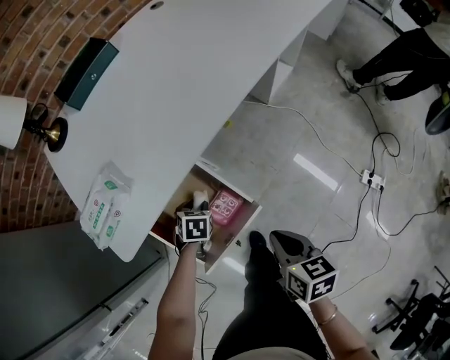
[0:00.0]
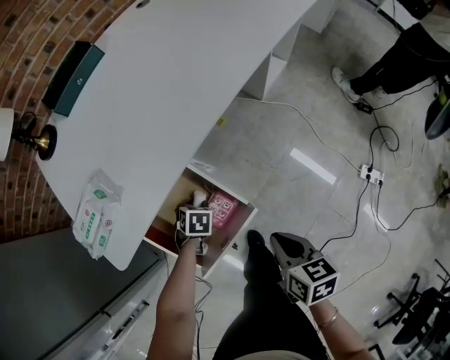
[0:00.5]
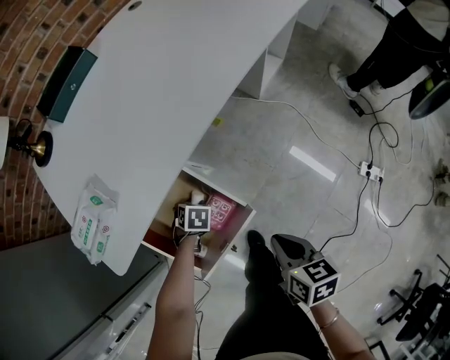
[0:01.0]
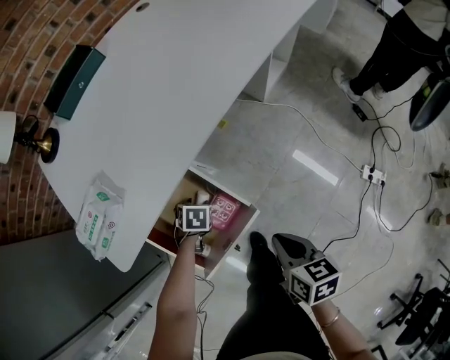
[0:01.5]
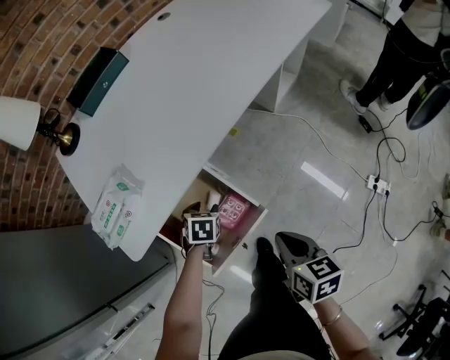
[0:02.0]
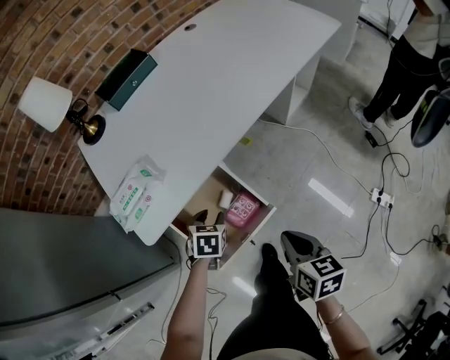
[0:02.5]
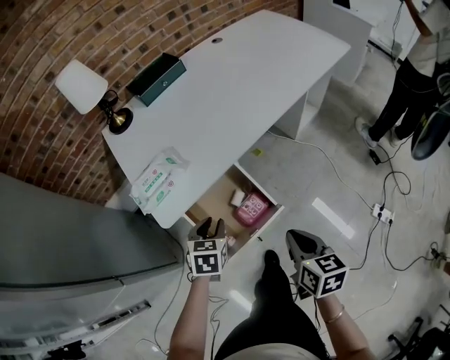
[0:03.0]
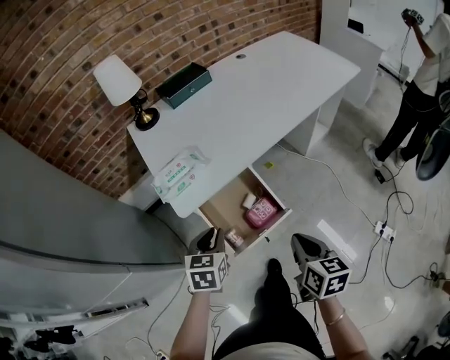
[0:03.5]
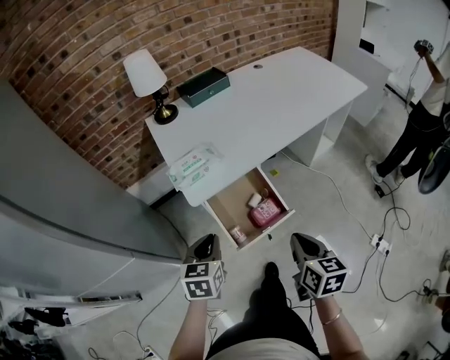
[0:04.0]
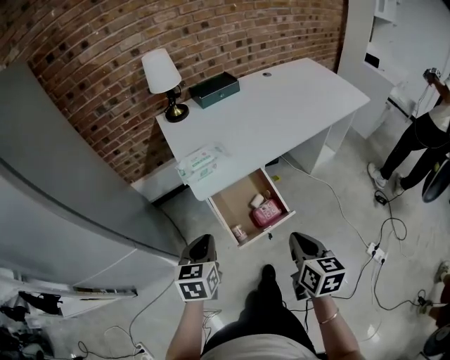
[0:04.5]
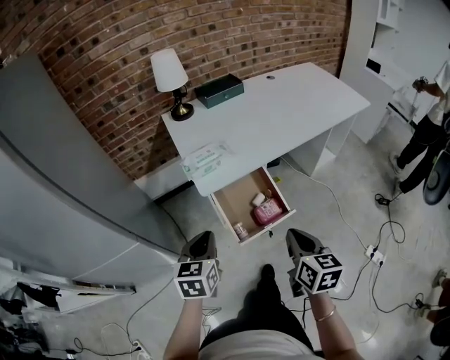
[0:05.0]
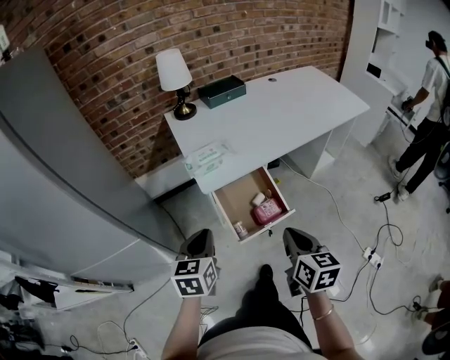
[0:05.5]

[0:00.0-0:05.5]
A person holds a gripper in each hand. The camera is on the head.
0:02.0 to 0:03.5: The right gripper shifts approximately 20 cm upward, backward and to the left. The left gripper is displaced upward, backward and to the left by about 35 cm, rotates some 30 degrees, and closes its fingers.
0:03.5 to 0:05.5: The left gripper is displaced backward, to the left and upward by roughly 20 cm. The right gripper goes approximately 15 cm to the left, backward and upward.

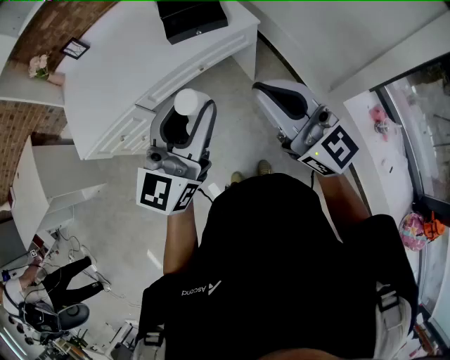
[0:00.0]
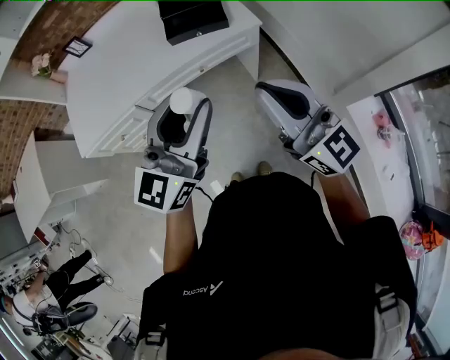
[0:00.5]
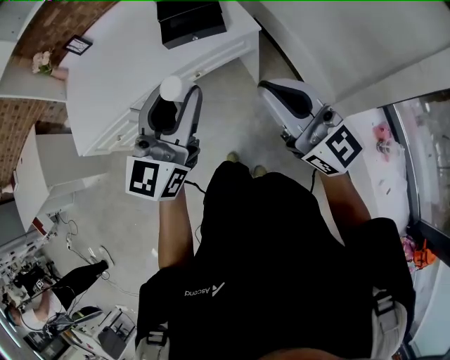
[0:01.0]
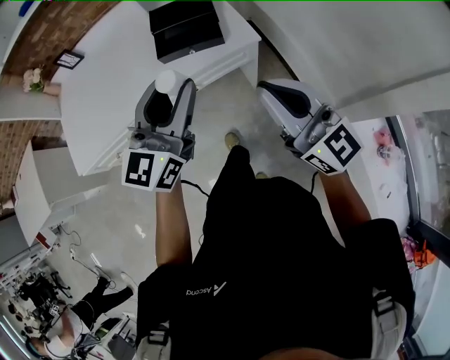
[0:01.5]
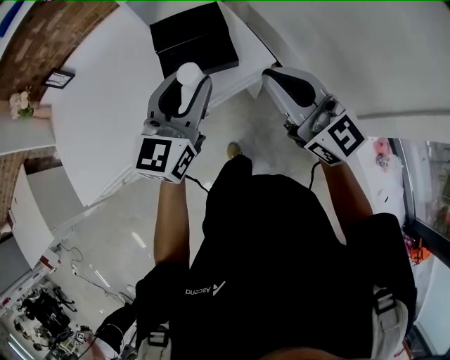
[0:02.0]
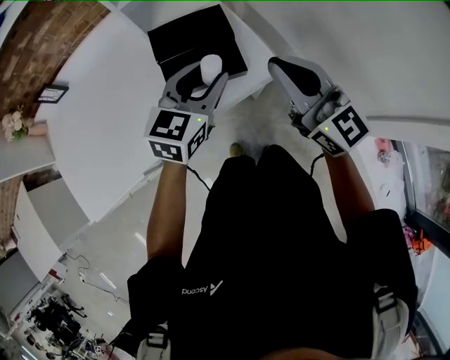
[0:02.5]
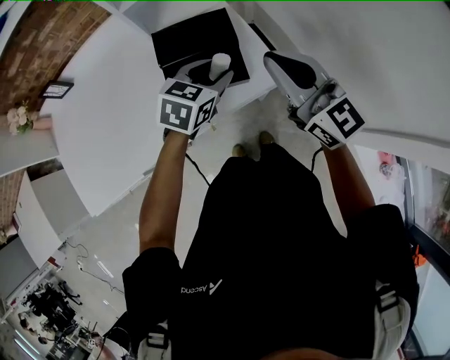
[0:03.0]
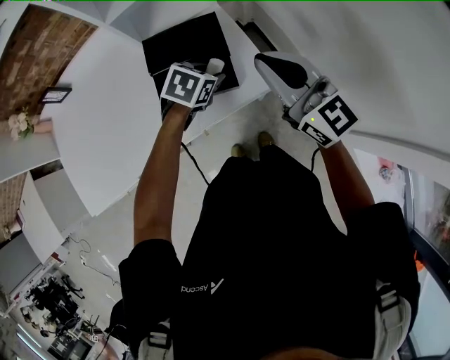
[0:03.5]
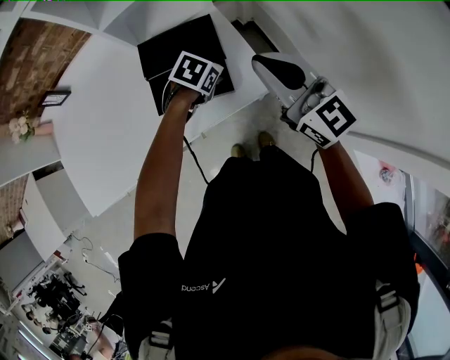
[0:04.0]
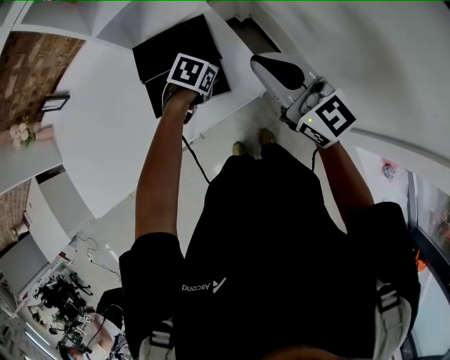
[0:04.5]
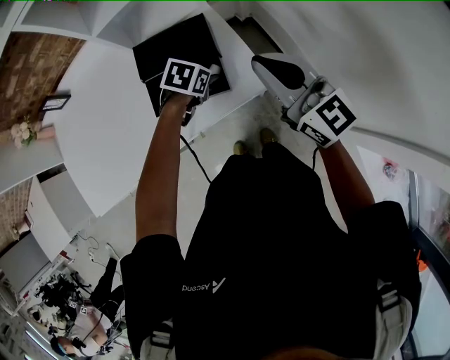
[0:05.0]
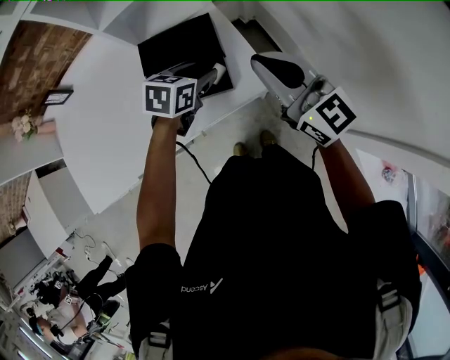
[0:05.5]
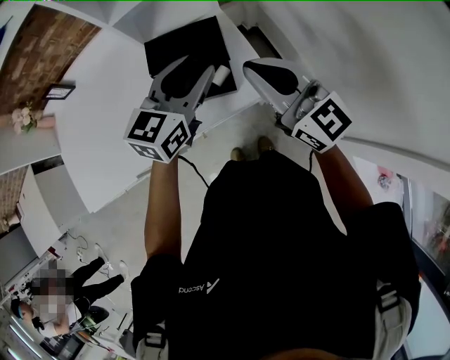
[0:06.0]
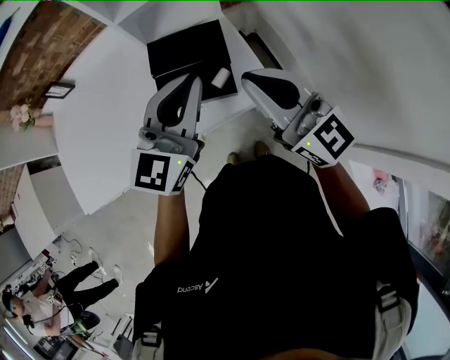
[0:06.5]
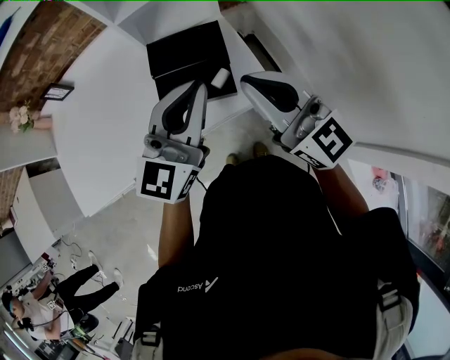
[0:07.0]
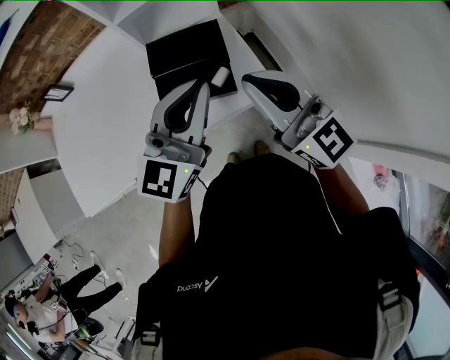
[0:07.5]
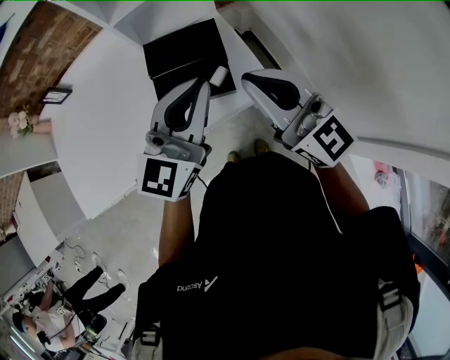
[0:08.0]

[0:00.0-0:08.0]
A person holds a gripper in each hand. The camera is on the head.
0:00.0 to 0:02.0: The grippers both shift forward by approximately 30 cm.
0:02.0 to 0:04.0: The right gripper goes some 20 cm forward. The left gripper heads downward and forward, covering some 35 cm, and tips its fingers downward by about 60 degrees.
0:04.0 to 0:06.0: The left gripper moves upward, about 25 cm, and tips its fingers upward by approximately 50 degrees.
0:06.0 to 0:08.0: The left gripper is displaced upward and backward by roughly 10 cm, and closes up, while the right gripper shifts by approximately 5 cm.

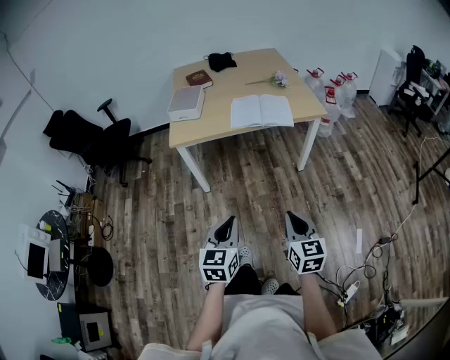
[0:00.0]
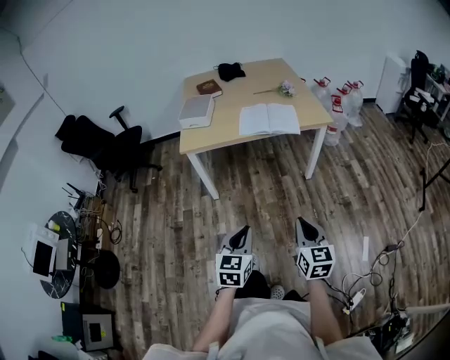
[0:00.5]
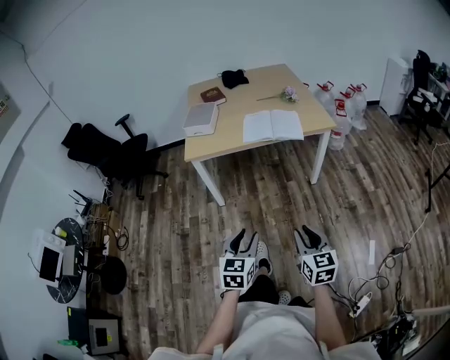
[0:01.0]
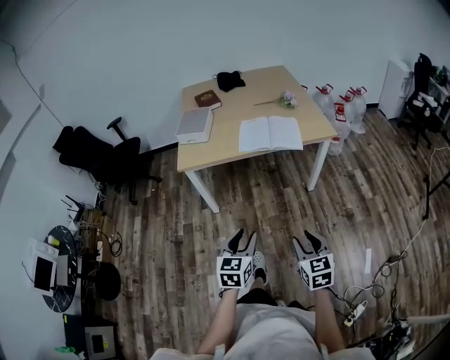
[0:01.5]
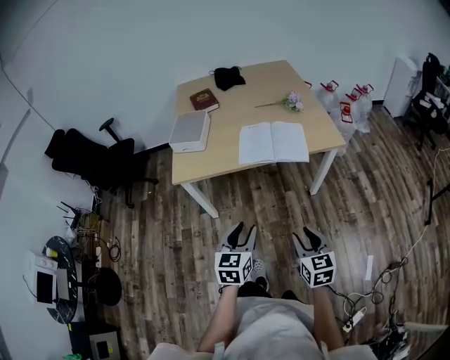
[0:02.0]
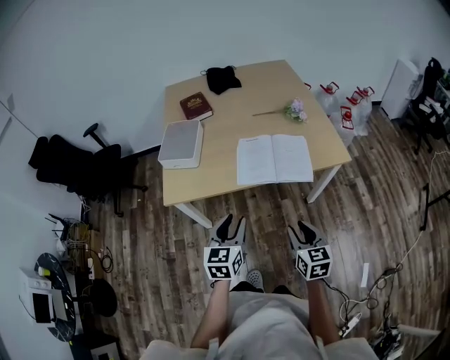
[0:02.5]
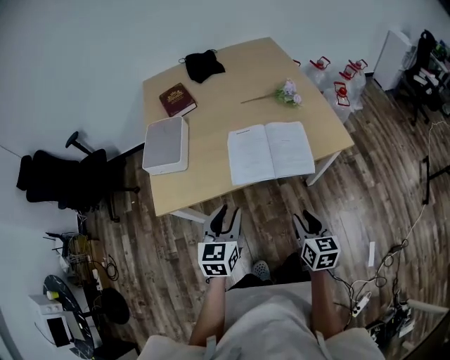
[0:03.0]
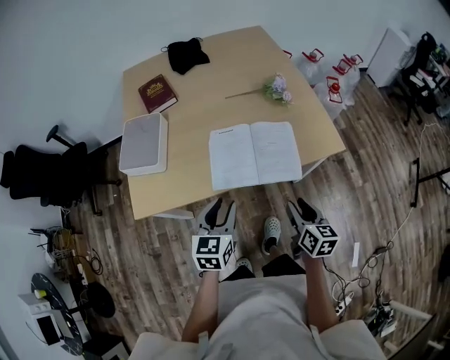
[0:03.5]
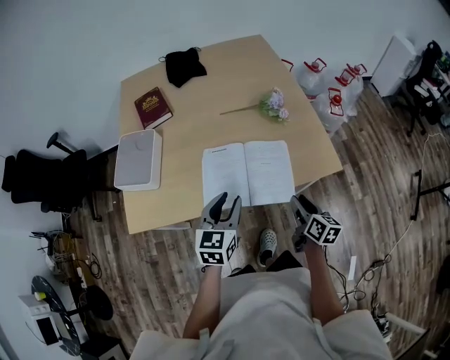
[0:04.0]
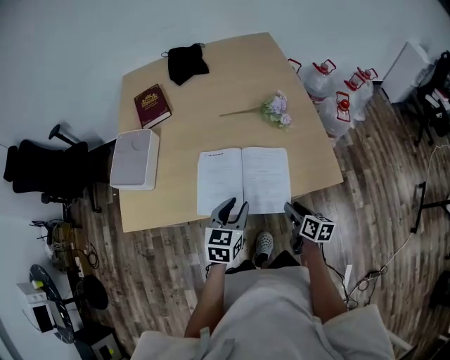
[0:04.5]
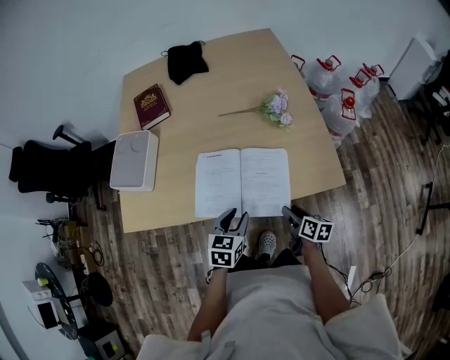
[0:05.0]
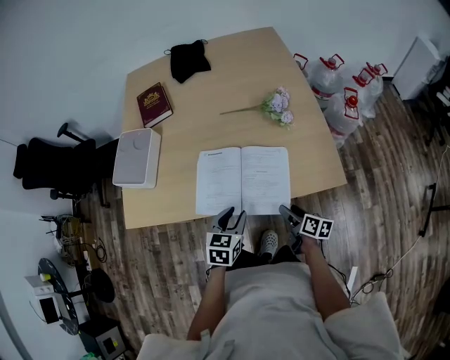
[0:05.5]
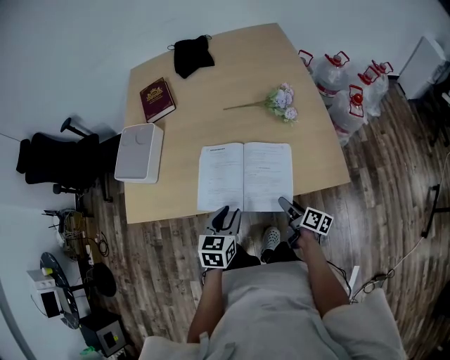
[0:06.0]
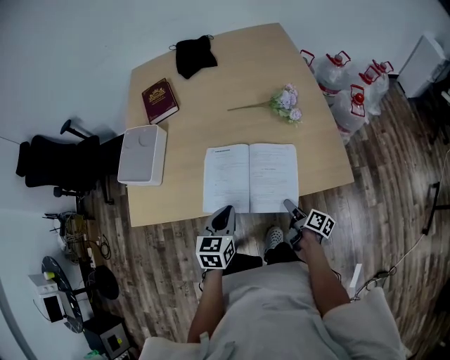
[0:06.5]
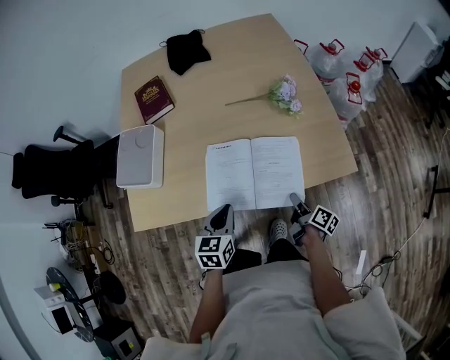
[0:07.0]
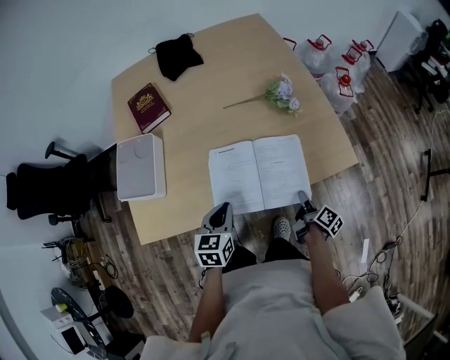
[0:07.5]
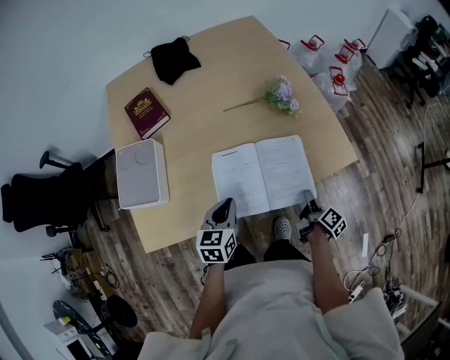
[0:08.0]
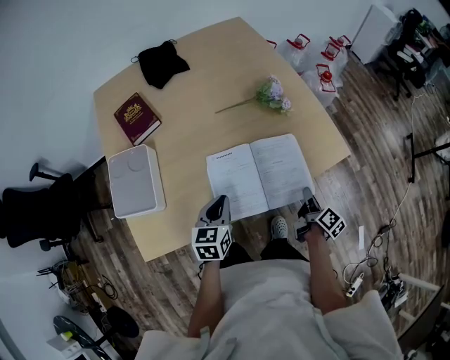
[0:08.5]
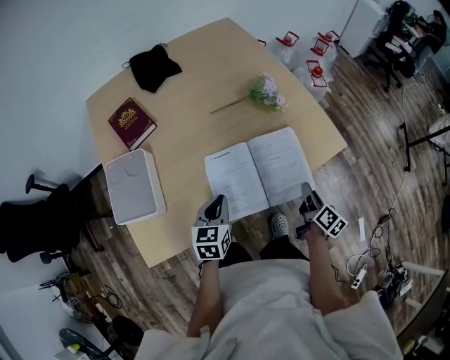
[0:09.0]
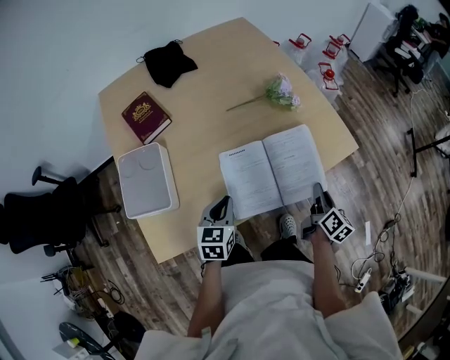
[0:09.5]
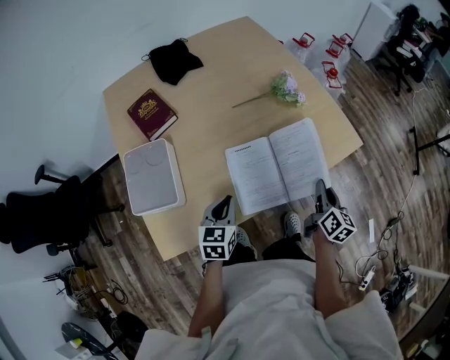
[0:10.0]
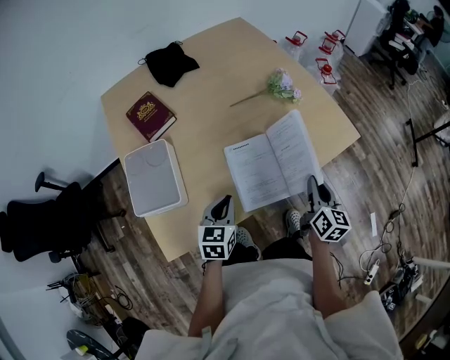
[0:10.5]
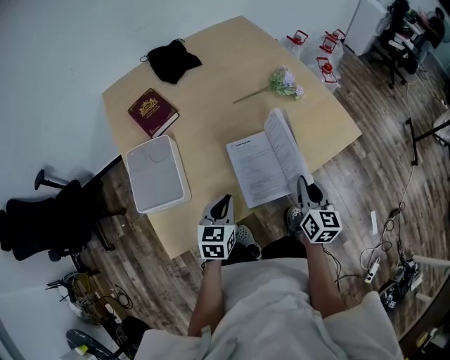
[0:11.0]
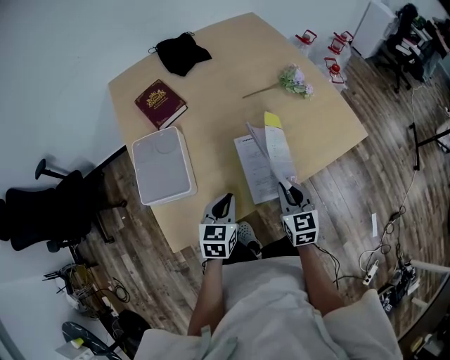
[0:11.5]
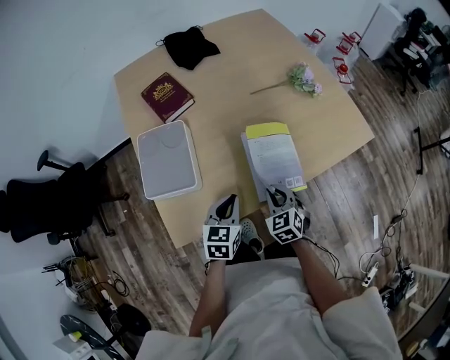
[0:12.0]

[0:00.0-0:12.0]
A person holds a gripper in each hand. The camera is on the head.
0:00.0 to 0:02.0: The grippers both shift forward by approximately 20 cm. The right gripper opens up; the left gripper opens up.
0:02.0 to 0:04.0: The pair of grippers is taken forward, approximately 40 cm. The right gripper turns by some 40 degrees.
0:04.0 to 0:06.0: The left gripper heads downward, covering roughly 10 cm; the right gripper travels downward and forward by some 15 cm, changes its angle by some 30 degrees, and opens.
0:06.0 to 0:08.0: The right gripper changes its angle by about 40 degrees, and closes its fingers. Meanwhile the left gripper is displaced to the left and forward by roughly 15 cm, and closes its fingers.
0:08.0 to 0:10.0: The right gripper is displaced upward and to the left by about 15 cm, and rotates roughly 40 degrees. The left gripper goes approximately 10 cm to the left.
0:10.0 to 0:12.0: The left gripper moves backward and to the left, roughly 10 cm, while the right gripper travels to the left by about 25 cm, and twists approximately 60 degrees counterclockwise, seen from behind.

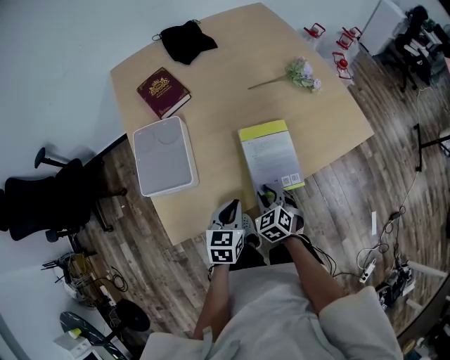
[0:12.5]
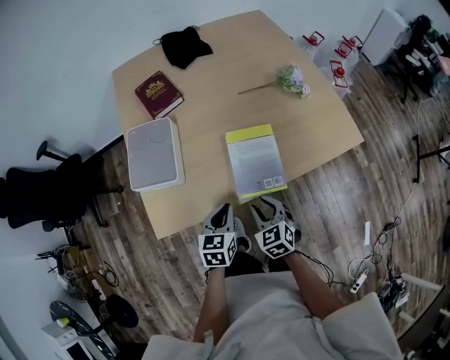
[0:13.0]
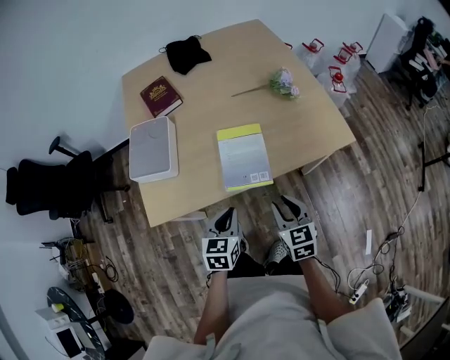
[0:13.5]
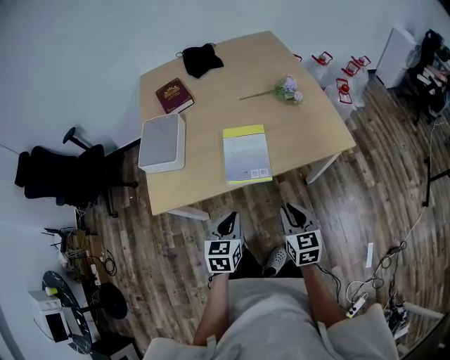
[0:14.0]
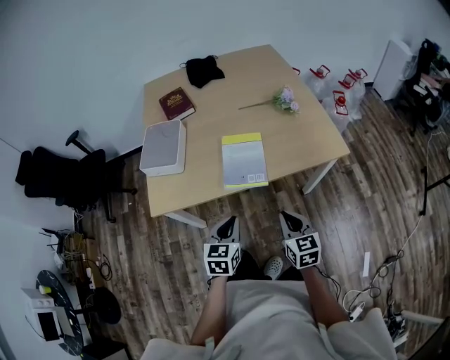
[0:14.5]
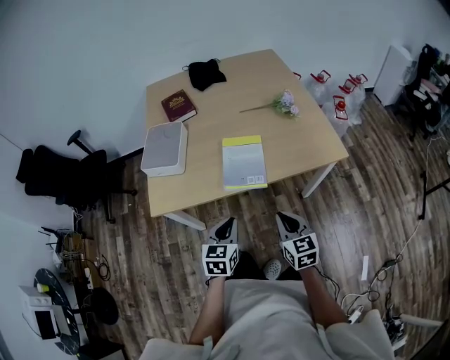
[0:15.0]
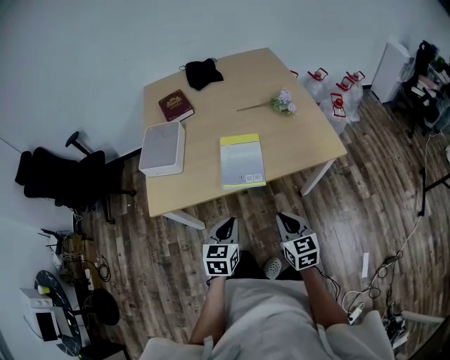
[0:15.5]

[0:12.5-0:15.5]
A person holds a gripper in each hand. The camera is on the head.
0:12.5 to 0:14.0: The right gripper moves to the right, backward and upward, approximately 30 cm, and rotates about 40 degrees; the left gripper is displaced backward and to the right by some 20 cm.
0:14.0 to 0:15.5: The grippers move only a little.
